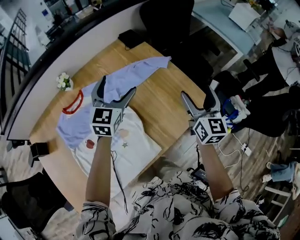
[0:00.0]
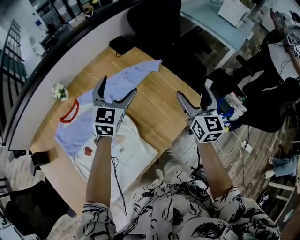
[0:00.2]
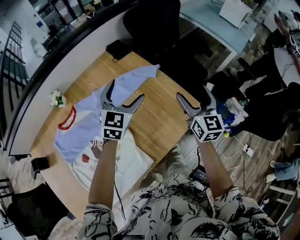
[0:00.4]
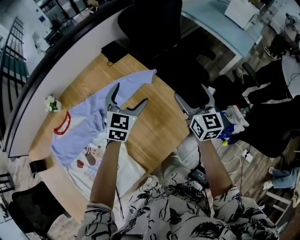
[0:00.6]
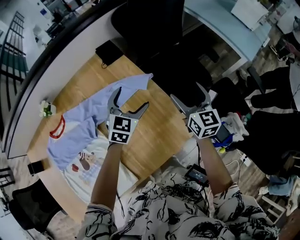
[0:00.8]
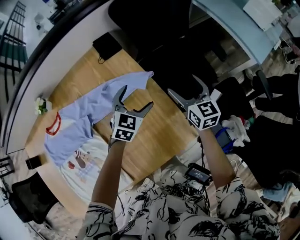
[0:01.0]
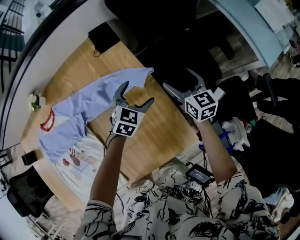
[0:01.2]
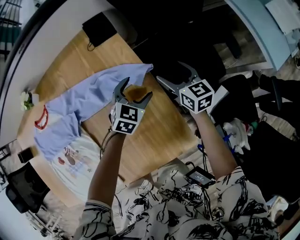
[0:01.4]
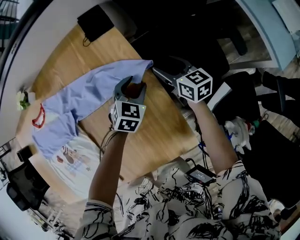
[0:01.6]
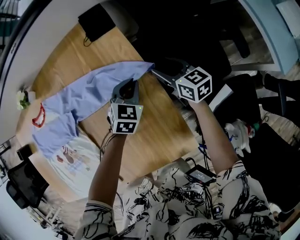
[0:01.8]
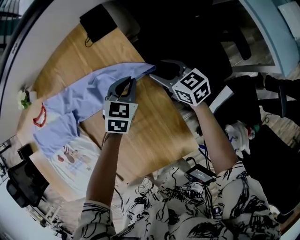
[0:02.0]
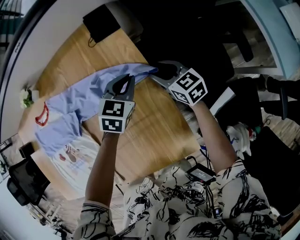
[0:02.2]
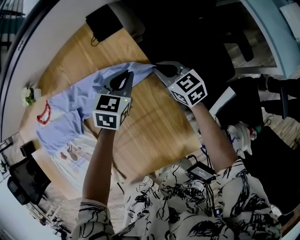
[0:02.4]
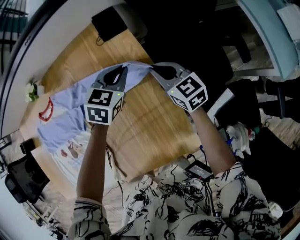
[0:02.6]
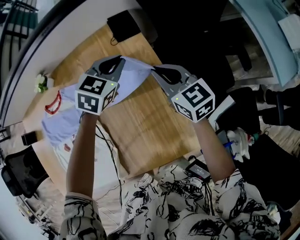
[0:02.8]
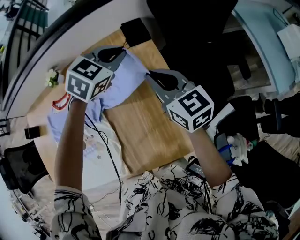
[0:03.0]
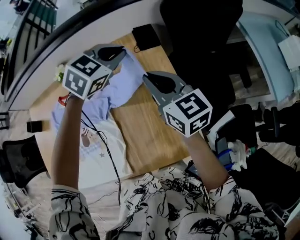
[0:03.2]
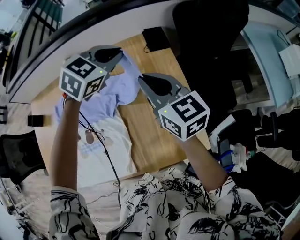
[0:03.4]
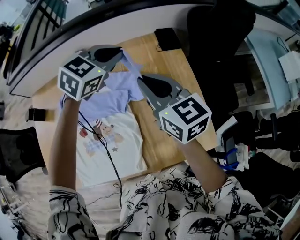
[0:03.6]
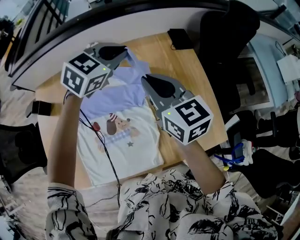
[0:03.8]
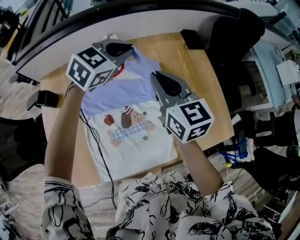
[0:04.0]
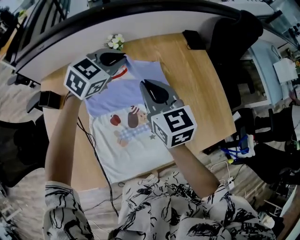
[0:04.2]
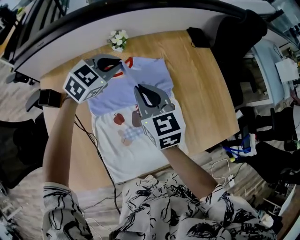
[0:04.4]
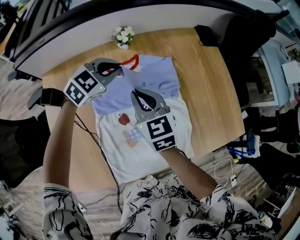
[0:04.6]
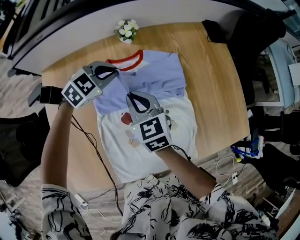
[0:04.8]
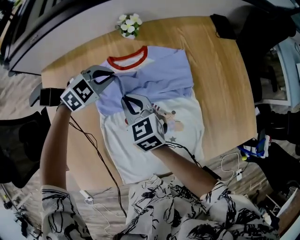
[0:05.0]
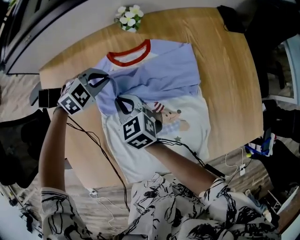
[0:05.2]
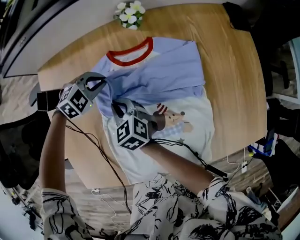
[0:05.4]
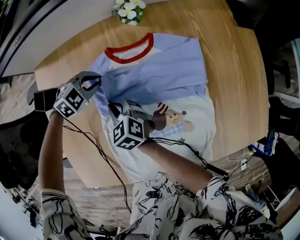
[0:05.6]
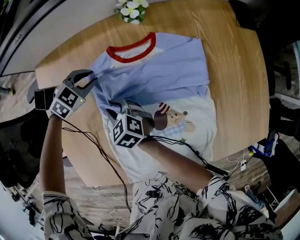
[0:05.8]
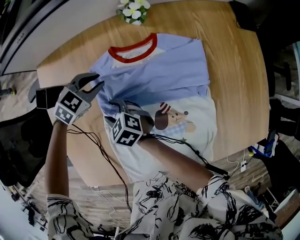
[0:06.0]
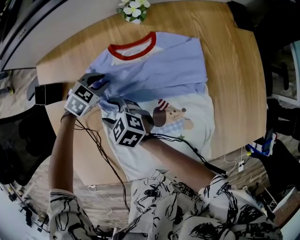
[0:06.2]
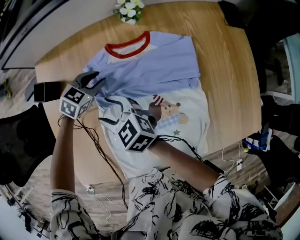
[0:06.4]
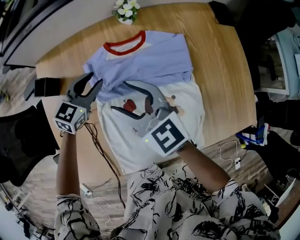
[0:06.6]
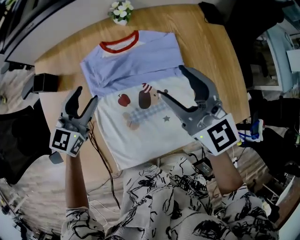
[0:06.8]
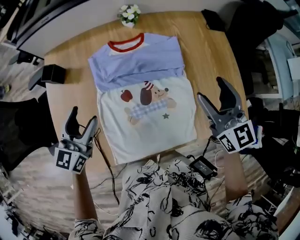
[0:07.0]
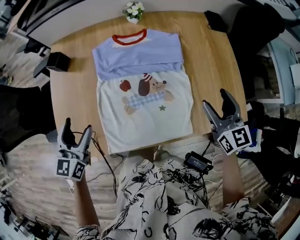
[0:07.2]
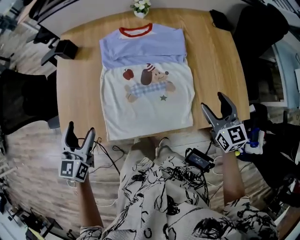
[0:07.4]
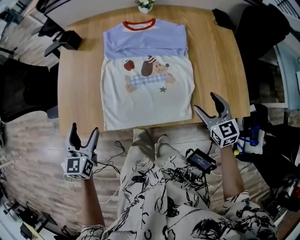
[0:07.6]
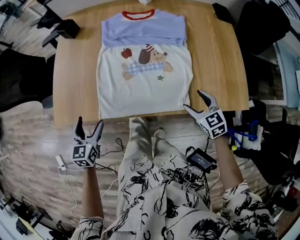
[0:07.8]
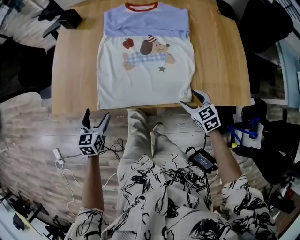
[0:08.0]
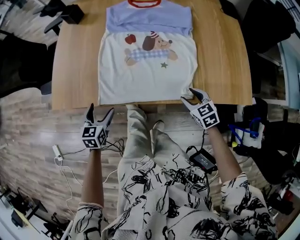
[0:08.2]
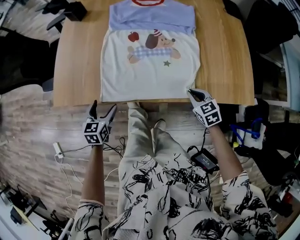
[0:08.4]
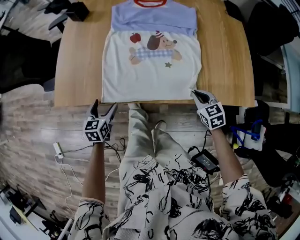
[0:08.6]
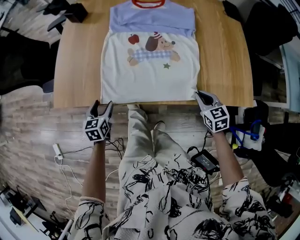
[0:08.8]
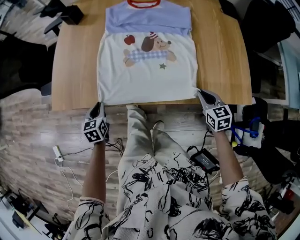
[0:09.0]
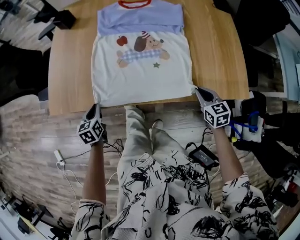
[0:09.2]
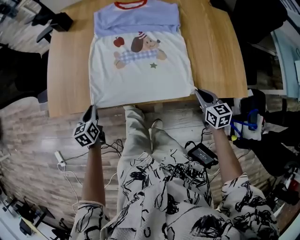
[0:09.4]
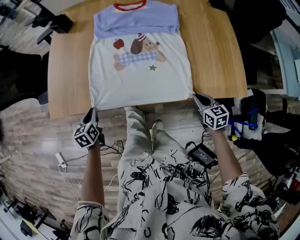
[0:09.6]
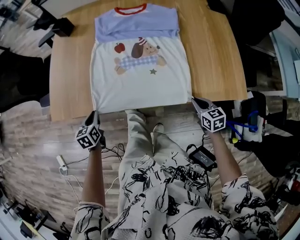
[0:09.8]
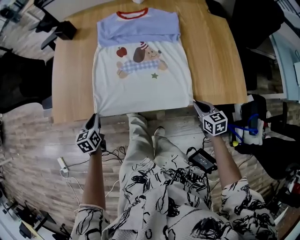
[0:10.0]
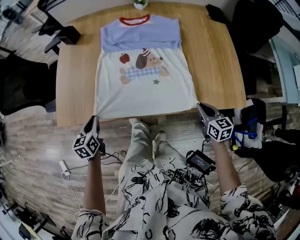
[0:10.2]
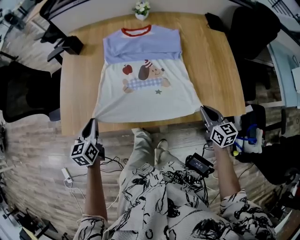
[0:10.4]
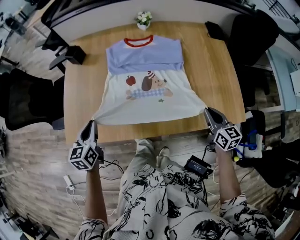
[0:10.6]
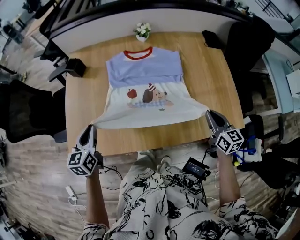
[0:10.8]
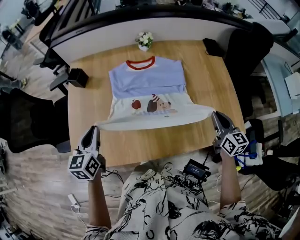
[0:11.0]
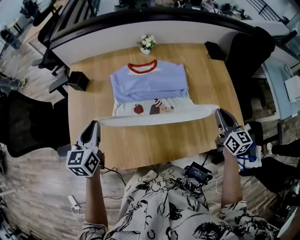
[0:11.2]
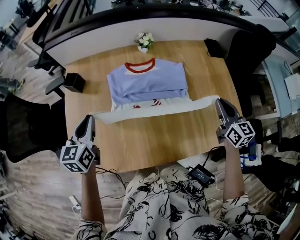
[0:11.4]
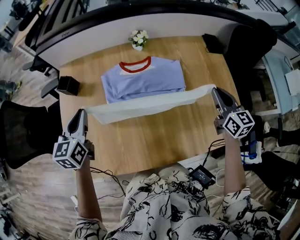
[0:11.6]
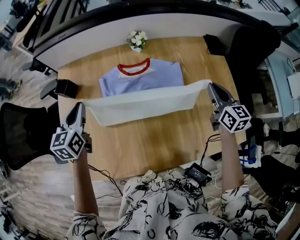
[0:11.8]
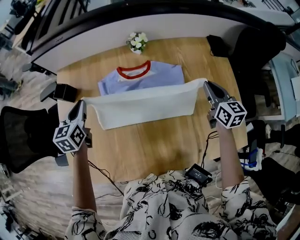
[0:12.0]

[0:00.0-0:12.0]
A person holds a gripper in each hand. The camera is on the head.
0:00.0 to 0:01.6: The left gripper changes place by roughly 40 cm, points its fingers about 30 degrees further downward, and closes its fingers, while the right gripper shifts by roughly 50 cm, and turns by approximately 50 degrees.
0:01.6 to 0:03.0: The grippers both shift upward and to the left by approximately 30 cm. The right gripper closes; the left gripper closes its fingers.
0:03.0 to 0:04.4: Both grippers are carried to the left, some 50 cm.
0:04.4 to 0:06.0: The two grippers go about 30 cm downward and to the left. The left gripper swivels about 20 degrees. The right gripper swivels about 50 degrees, and opens up.
0:06.0 to 0:07.6: The left gripper moves backward, roughly 50 cm, changes its angle by about 60 degrees, and opens; the right gripper shifts approximately 50 cm to the right and backward, and rotates about 30 degrees.
0:07.6 to 0:09.0: The right gripper shifts about 10 cm downward and backward, and closes; the left gripper goes about 20 cm downward, changes its angle by roughly 20 degrees, and closes.
0:09.0 to 0:10.4: The left gripper heads upward, covering approximately 15 cm; the right gripper heads upward, covering about 10 cm.
0:10.4 to 0:12.0: The two grippers go roughly 35 cm forward.

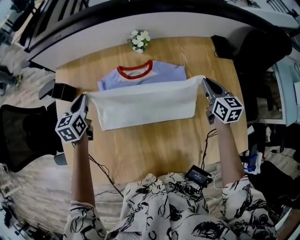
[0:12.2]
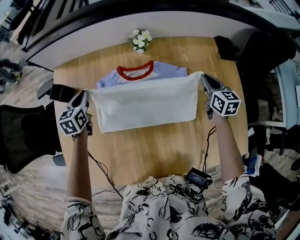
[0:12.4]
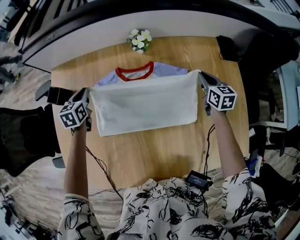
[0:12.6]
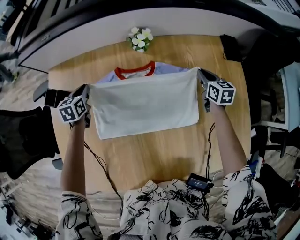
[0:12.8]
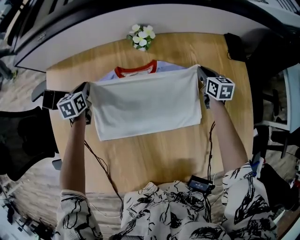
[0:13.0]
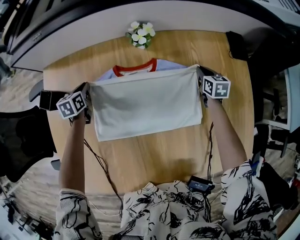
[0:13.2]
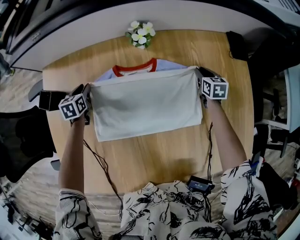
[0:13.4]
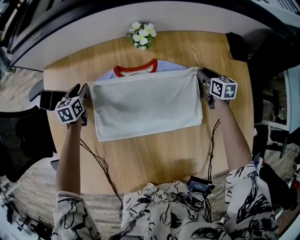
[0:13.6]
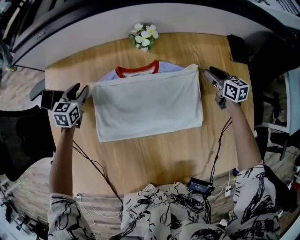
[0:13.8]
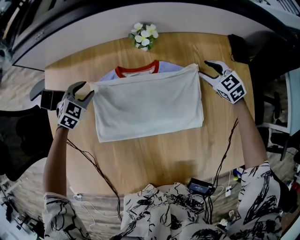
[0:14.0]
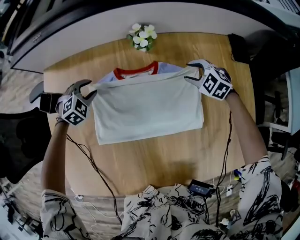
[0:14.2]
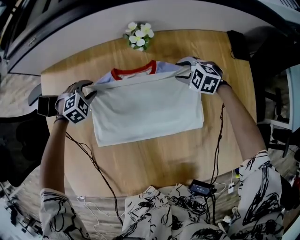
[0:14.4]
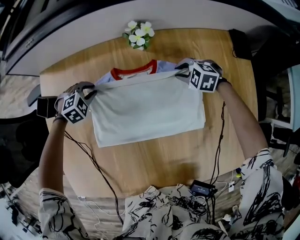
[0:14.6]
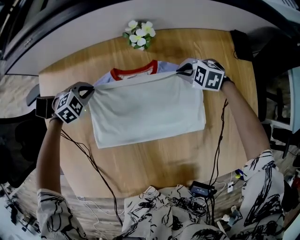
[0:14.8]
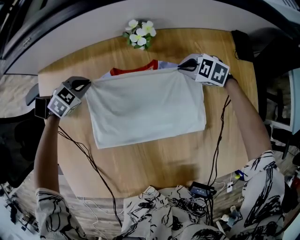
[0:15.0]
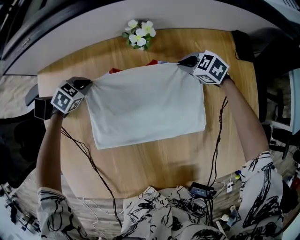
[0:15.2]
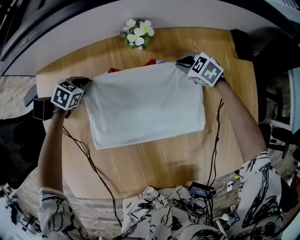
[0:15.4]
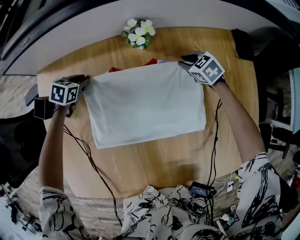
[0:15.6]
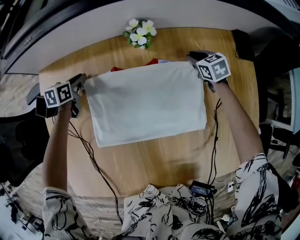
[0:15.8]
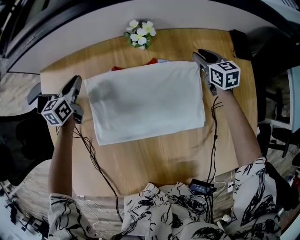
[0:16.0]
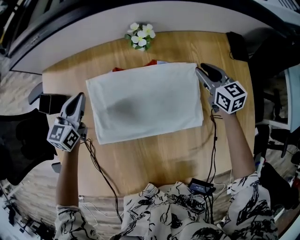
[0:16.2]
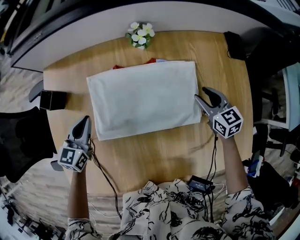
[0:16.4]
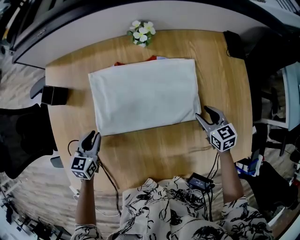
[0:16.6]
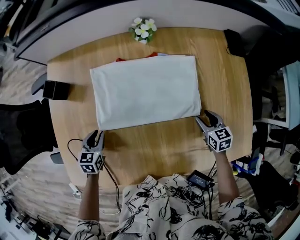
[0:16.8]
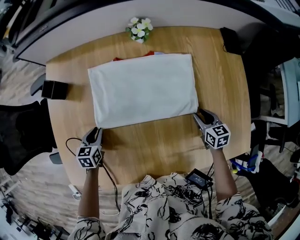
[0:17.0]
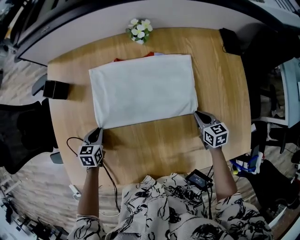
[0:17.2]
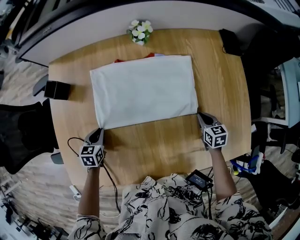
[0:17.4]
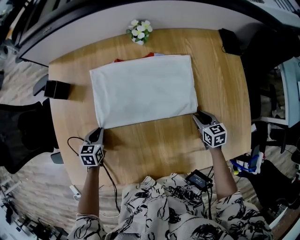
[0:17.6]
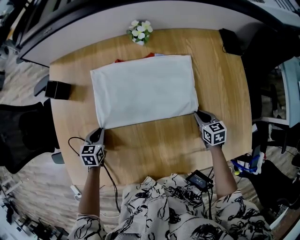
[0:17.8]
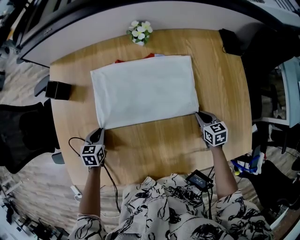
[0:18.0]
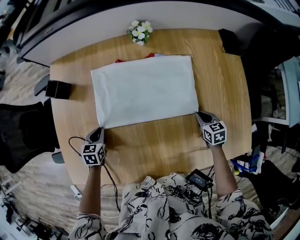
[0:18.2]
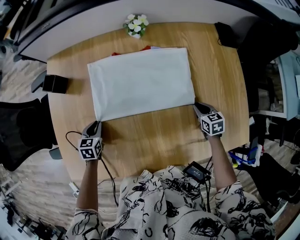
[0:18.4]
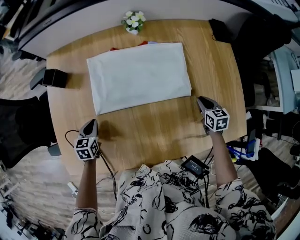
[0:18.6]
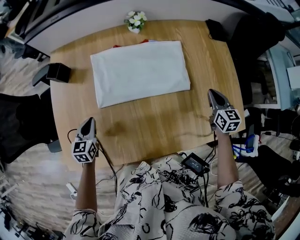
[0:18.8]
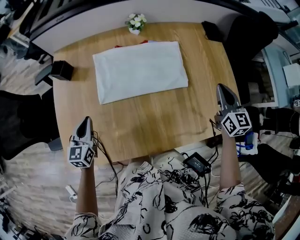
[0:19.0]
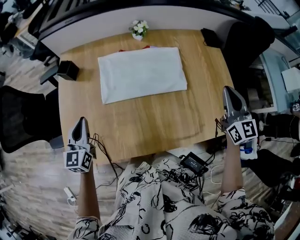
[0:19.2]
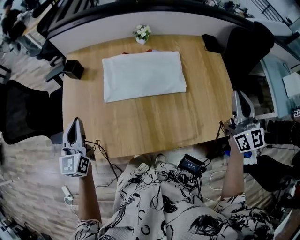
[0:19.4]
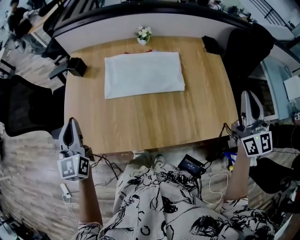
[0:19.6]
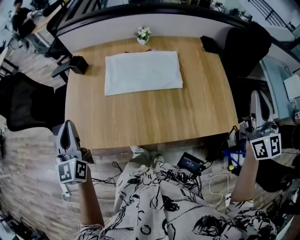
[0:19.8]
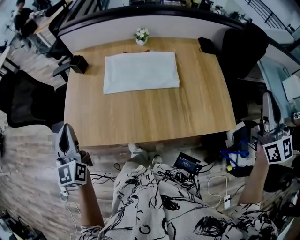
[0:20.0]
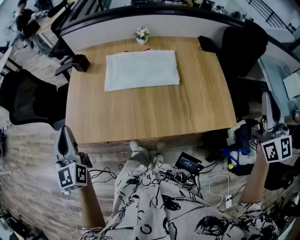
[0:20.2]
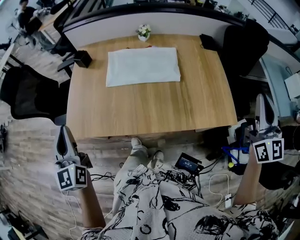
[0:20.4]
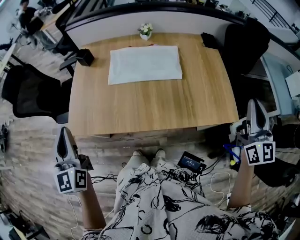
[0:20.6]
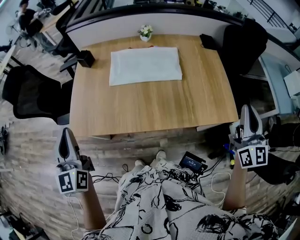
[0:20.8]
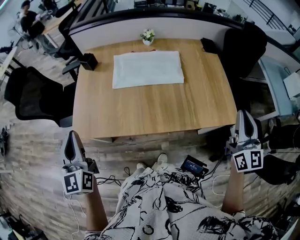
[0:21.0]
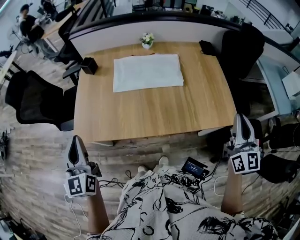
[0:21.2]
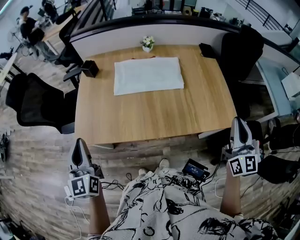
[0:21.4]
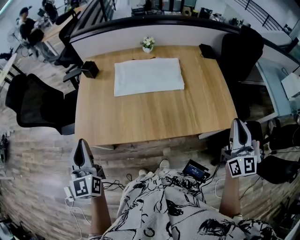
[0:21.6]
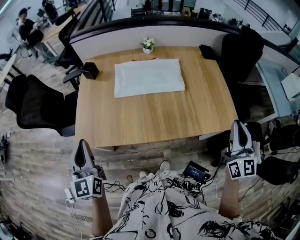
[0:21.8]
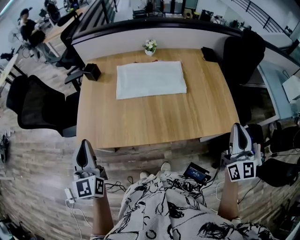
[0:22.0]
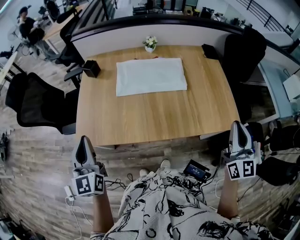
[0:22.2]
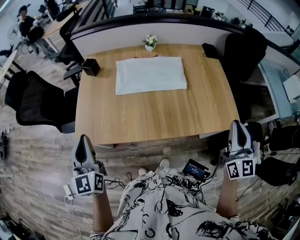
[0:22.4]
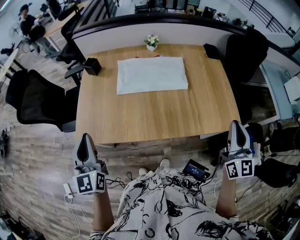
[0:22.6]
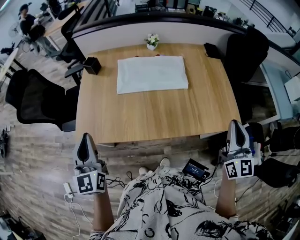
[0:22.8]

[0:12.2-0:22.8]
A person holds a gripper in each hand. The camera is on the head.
0:12.2 to 0:13.8: The two grippers go roughly 20 cm downward and forward. The left gripper turns by approximately 20 degrees.
0:13.8 to 0:15.2: The left gripper changes place by roughly 10 cm, and changes its angle by approximately 40 degrees, while the right gripper moves about 15 cm, and turns by about 50 degrees.
0:15.2 to 0:16.8: Both grippers travel together backward, about 30 cm. The left gripper turns by approximately 40 degrees; the right gripper turns by roughly 50 degrees, and opens up.
0:16.8 to 0:18.2: The right gripper closes.
0:18.2 to 0:19.8: Both grippers move upward and backward, some 50 cm. The left gripper points its fingers roughly 50 degrees further upward, while the right gripper points its fingers approximately 60 degrees further upward.
0:19.8 to 0:21.2: The left gripper moves backward, roughly 15 cm, while the right gripper travels backward and downward by approximately 15 cm.
0:21.2 to 0:22.8: The grippers make only small movements.

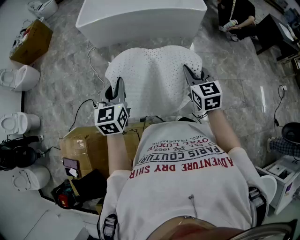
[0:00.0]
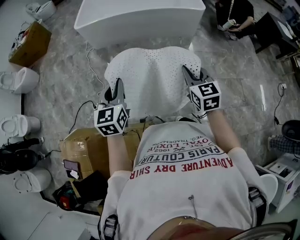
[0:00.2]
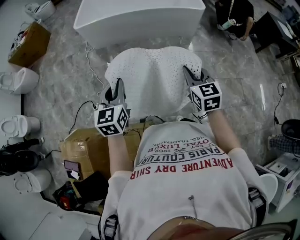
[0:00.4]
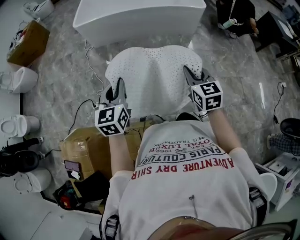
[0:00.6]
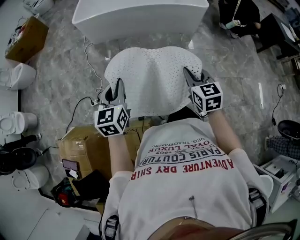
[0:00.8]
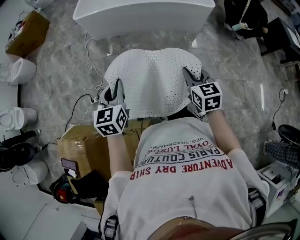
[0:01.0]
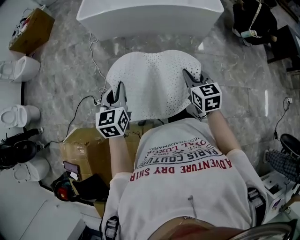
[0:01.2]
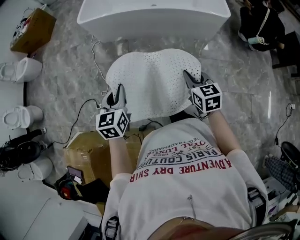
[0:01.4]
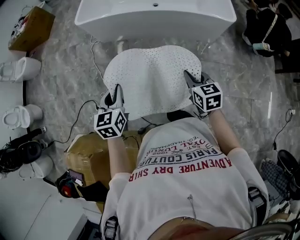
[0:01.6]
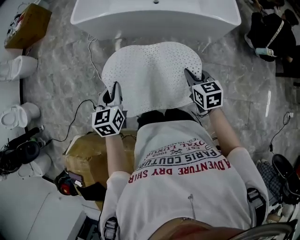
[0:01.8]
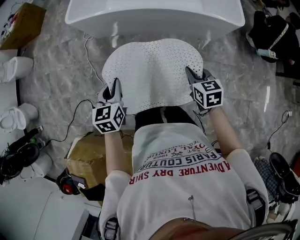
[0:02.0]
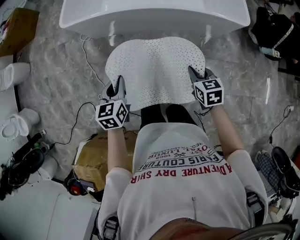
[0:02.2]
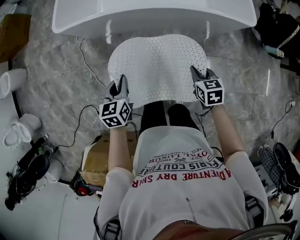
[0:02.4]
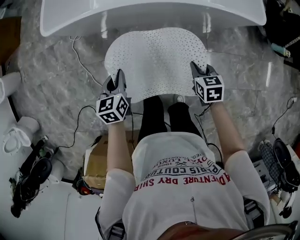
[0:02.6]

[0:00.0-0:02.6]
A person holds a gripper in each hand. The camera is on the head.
0:00.0 to 0:01.2: The grippers both shift forward and downward by approximately 15 cm.
0:01.2 to 0:02.6: The two grippers travel together, forward, roughly 50 cm. Both grippers move downward, about 25 cm. The right gripper turns by about 30 degrees.
